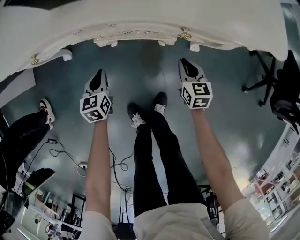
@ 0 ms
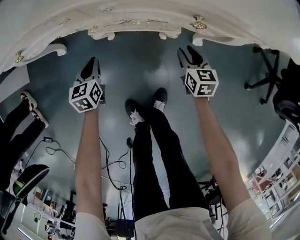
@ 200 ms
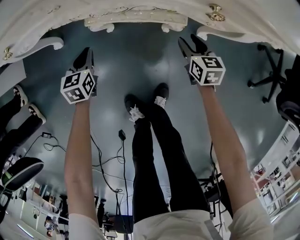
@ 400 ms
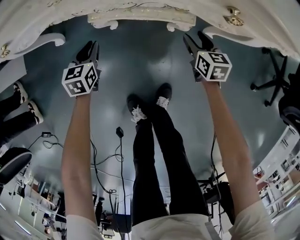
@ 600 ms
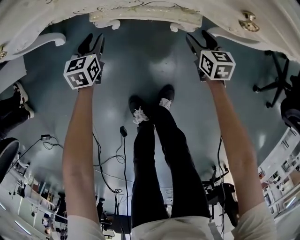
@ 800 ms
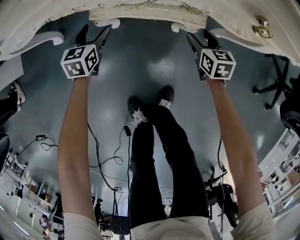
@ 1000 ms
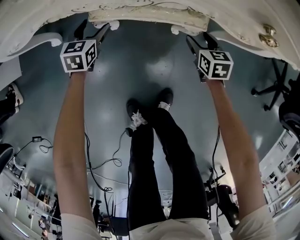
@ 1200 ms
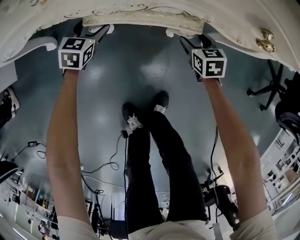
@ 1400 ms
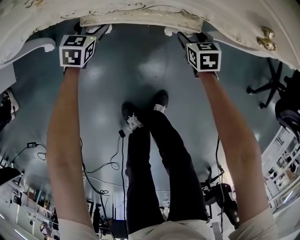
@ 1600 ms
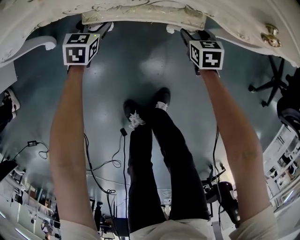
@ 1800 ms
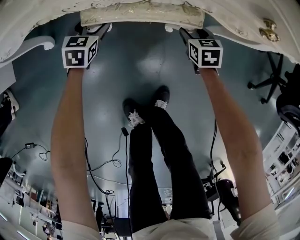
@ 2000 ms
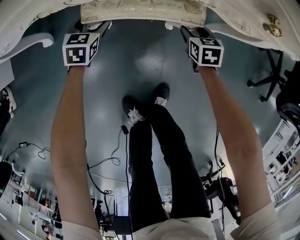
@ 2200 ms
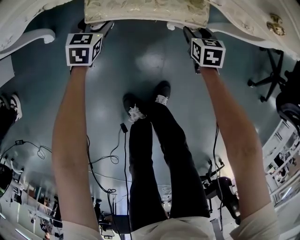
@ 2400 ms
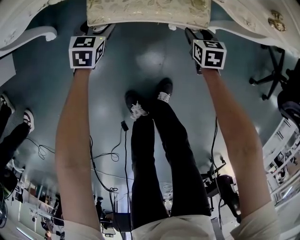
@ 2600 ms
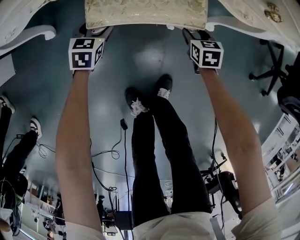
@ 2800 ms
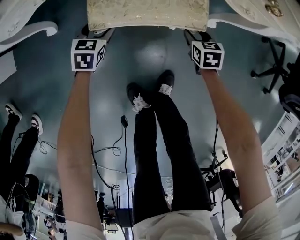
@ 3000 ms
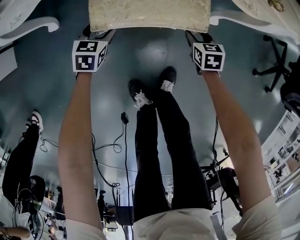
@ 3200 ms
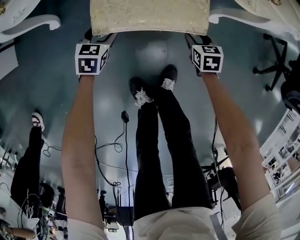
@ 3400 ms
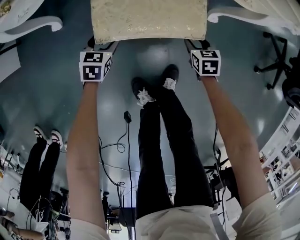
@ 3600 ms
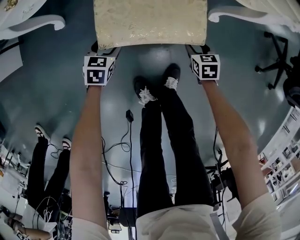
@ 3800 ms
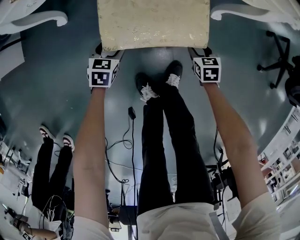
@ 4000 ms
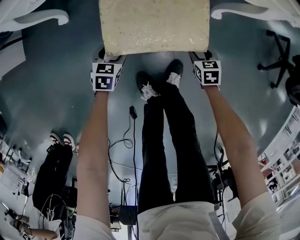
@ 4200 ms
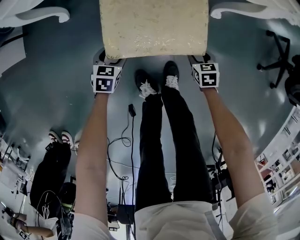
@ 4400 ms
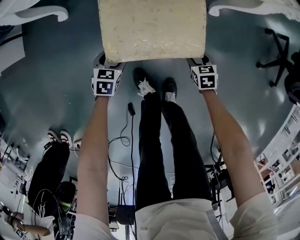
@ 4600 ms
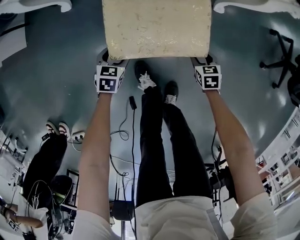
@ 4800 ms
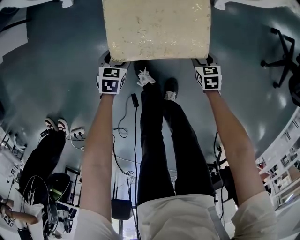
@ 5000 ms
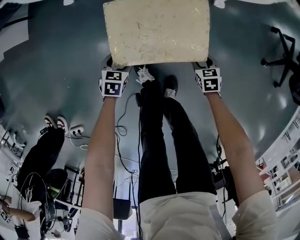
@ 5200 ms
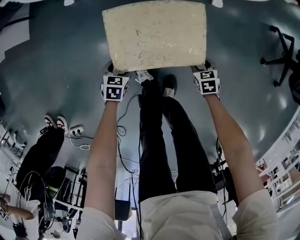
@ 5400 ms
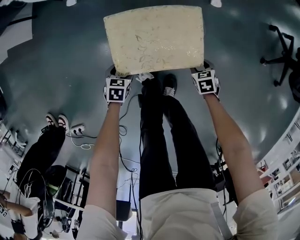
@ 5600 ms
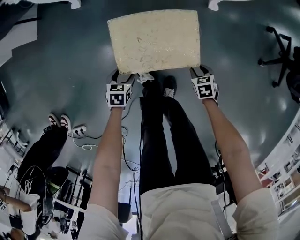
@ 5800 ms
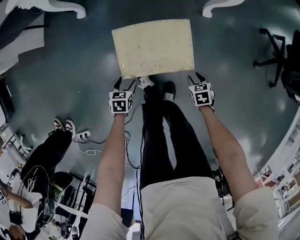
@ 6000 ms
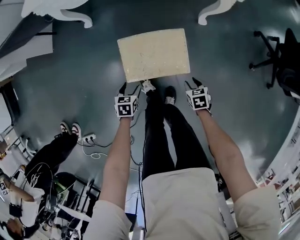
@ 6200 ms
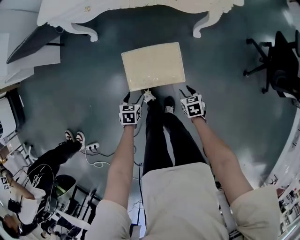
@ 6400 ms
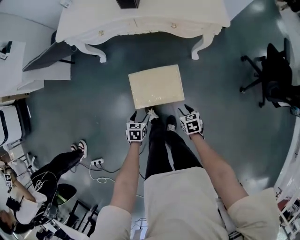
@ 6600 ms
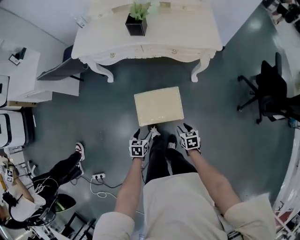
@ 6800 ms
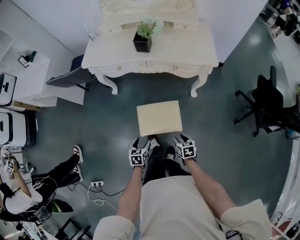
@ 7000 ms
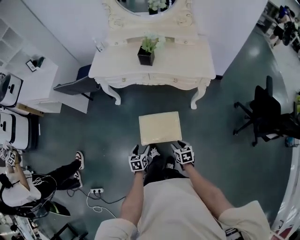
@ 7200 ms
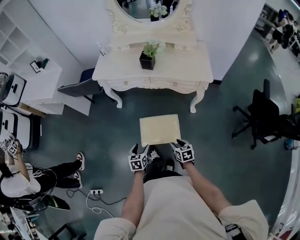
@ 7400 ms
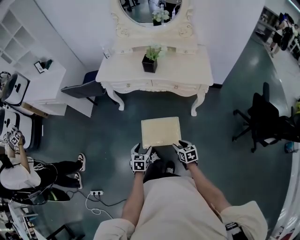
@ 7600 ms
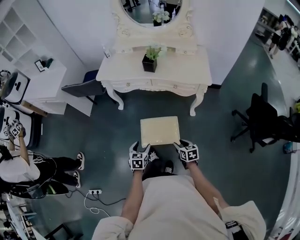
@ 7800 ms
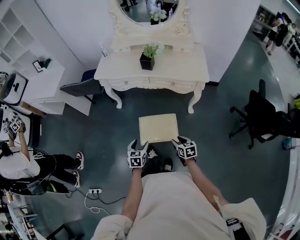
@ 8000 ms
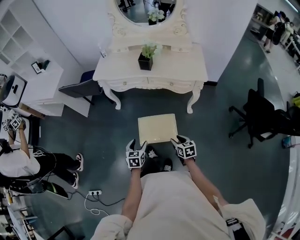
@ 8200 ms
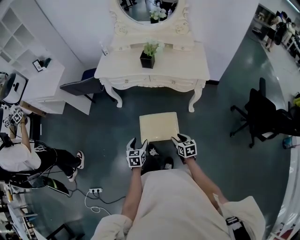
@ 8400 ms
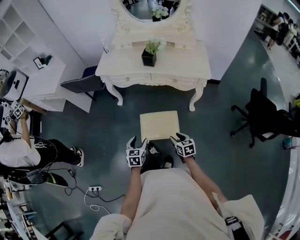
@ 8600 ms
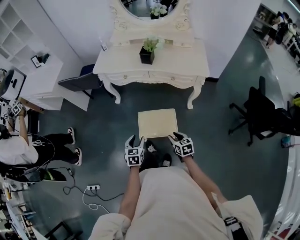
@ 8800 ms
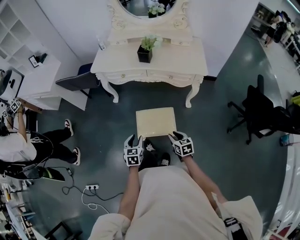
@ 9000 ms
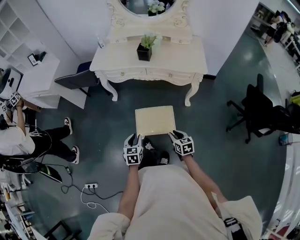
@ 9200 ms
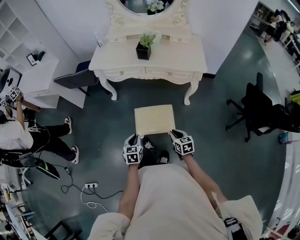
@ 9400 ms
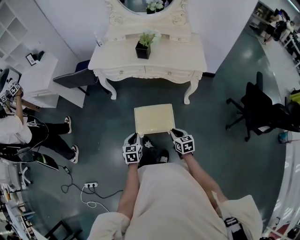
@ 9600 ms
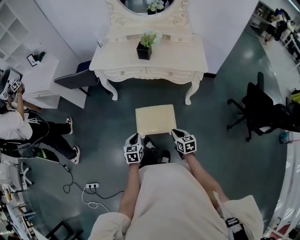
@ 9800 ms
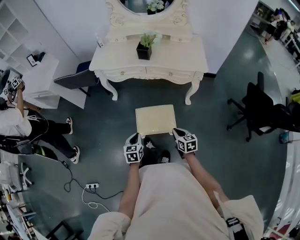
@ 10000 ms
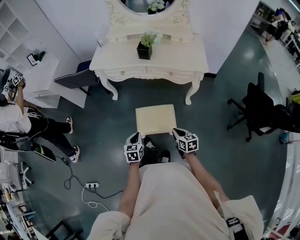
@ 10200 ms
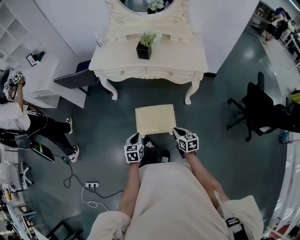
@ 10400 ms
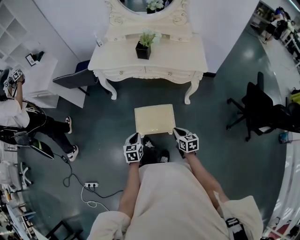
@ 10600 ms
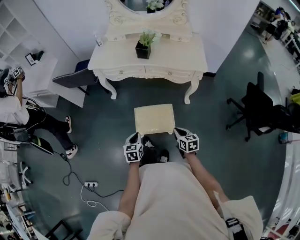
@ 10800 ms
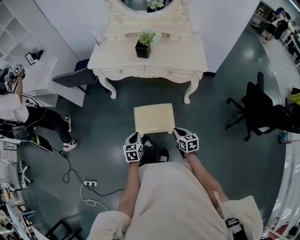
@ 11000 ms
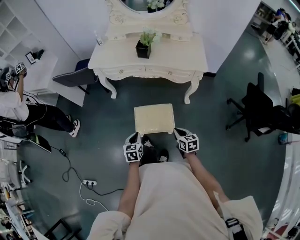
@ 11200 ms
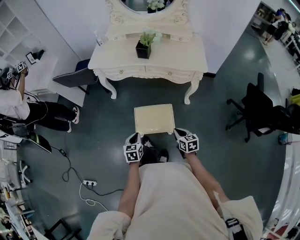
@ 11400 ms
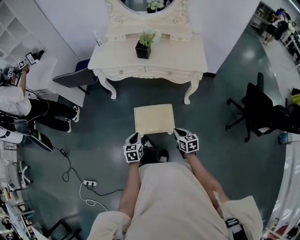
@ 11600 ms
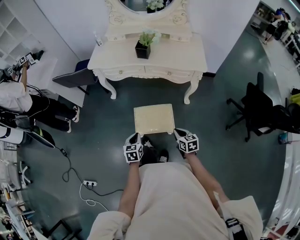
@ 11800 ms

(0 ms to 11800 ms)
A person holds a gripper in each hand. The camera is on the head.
0 ms - 1400 ms: The right gripper heads downward and forward, covering roughly 15 cm, and opens; the left gripper heads forward and downward, covering some 20 cm, rotates approximately 30 degrees, and opens its fingers.
1400 ms - 3000 ms: The grippers both shift backward by approximately 10 cm.
3000 ms - 4400 ms: The grippers both shift backward by approximately 20 cm.
4400 ms - 6000 ms: Both grippers move backward and upward, roughly 25 cm.
6000 ms - 7400 ms: The two grippers go some 40 cm upward. The left gripper swivels approximately 30 degrees. The right gripper turns by approximately 20 degrees.
7400 ms - 8800 ms: The left gripper moves upward, roughly 5 cm.
8800 ms - 10400 ms: The left gripper closes its fingers. Meanwhile the right gripper closes up.
10400 ms - 11800 ms: The grippers stay close to where they were, moving slightly.

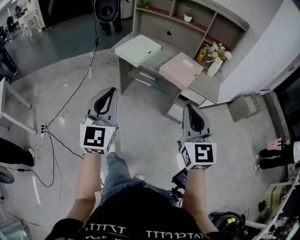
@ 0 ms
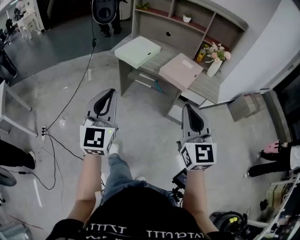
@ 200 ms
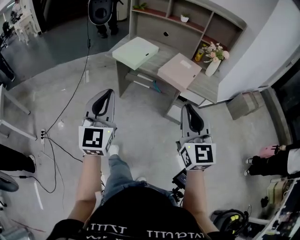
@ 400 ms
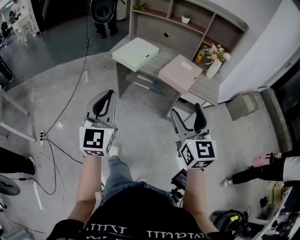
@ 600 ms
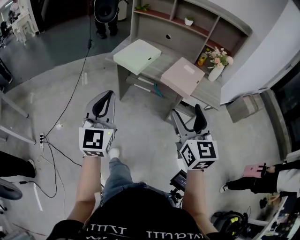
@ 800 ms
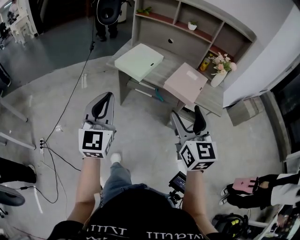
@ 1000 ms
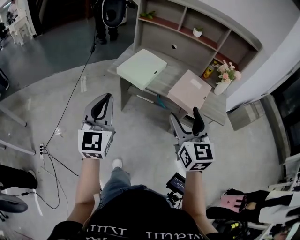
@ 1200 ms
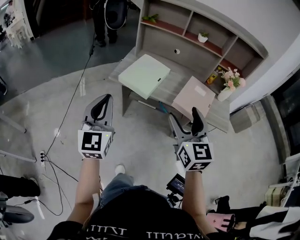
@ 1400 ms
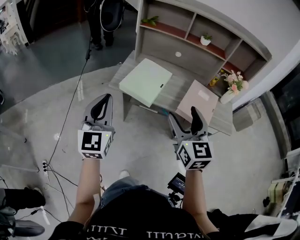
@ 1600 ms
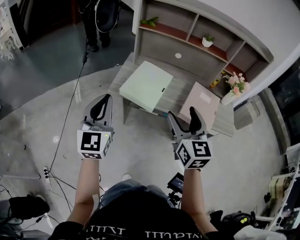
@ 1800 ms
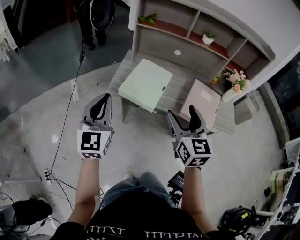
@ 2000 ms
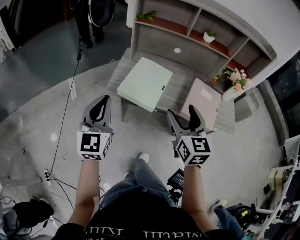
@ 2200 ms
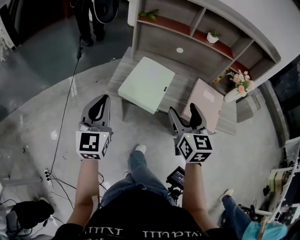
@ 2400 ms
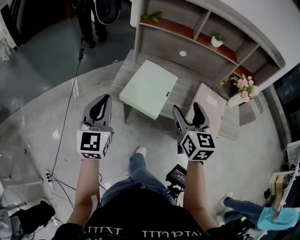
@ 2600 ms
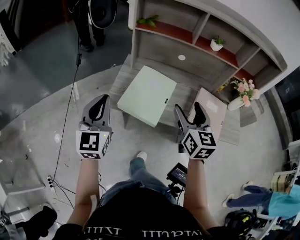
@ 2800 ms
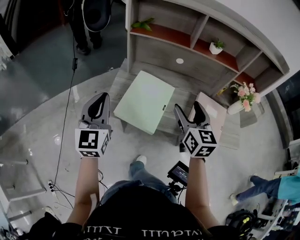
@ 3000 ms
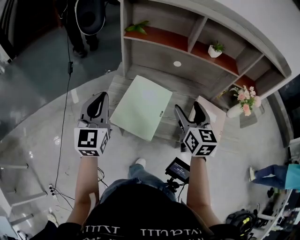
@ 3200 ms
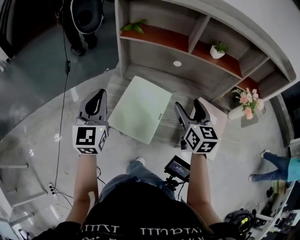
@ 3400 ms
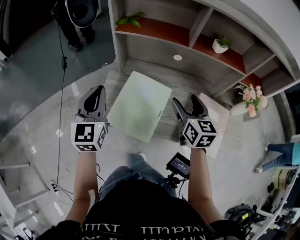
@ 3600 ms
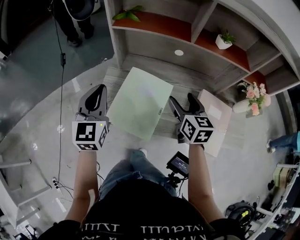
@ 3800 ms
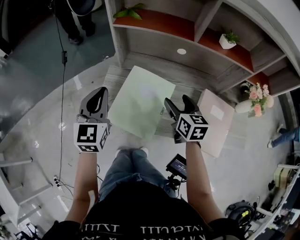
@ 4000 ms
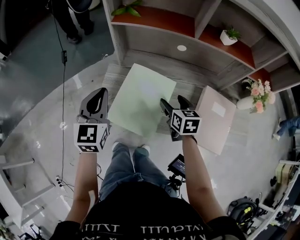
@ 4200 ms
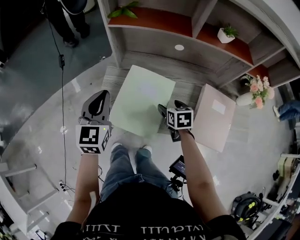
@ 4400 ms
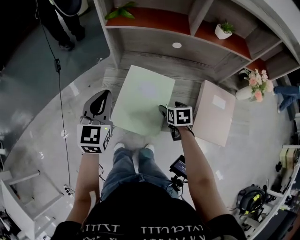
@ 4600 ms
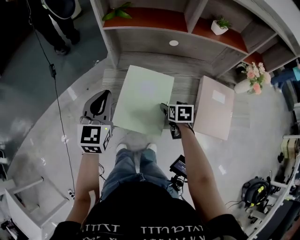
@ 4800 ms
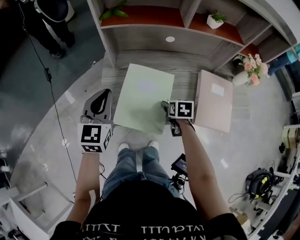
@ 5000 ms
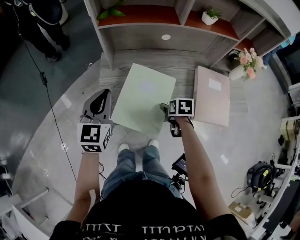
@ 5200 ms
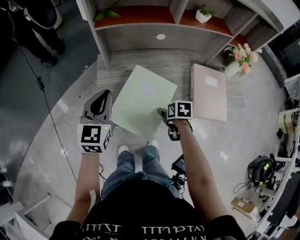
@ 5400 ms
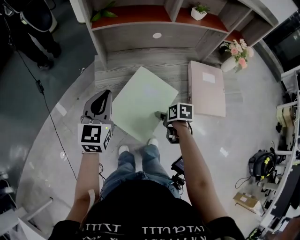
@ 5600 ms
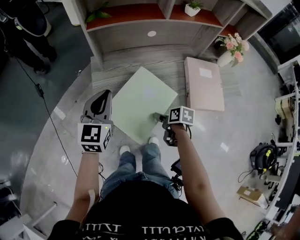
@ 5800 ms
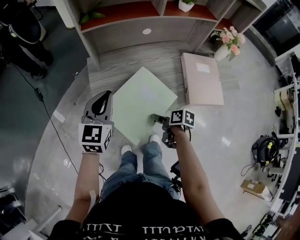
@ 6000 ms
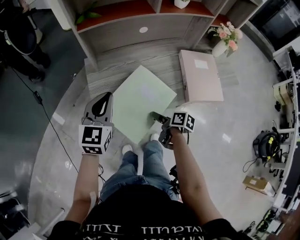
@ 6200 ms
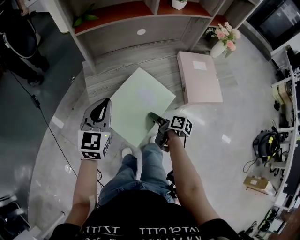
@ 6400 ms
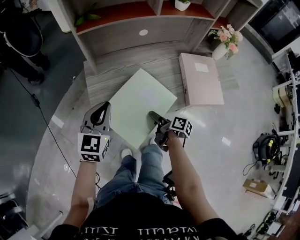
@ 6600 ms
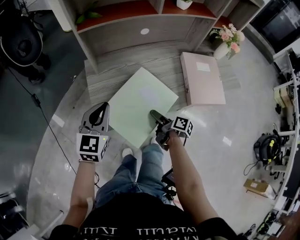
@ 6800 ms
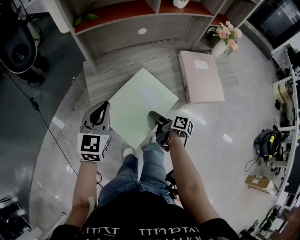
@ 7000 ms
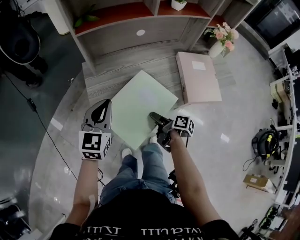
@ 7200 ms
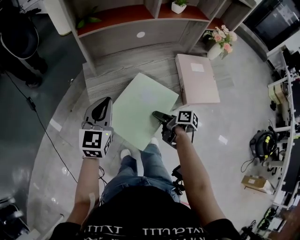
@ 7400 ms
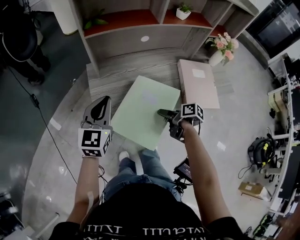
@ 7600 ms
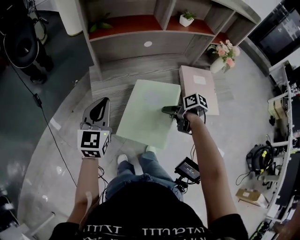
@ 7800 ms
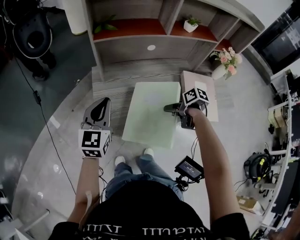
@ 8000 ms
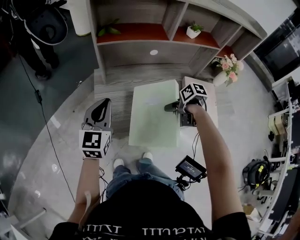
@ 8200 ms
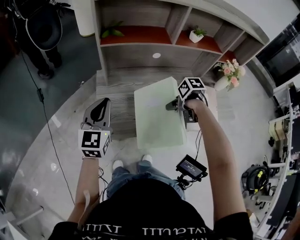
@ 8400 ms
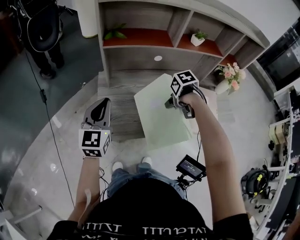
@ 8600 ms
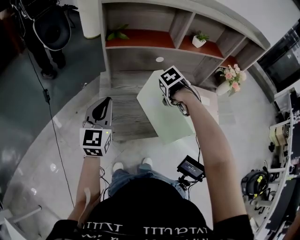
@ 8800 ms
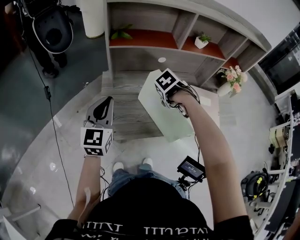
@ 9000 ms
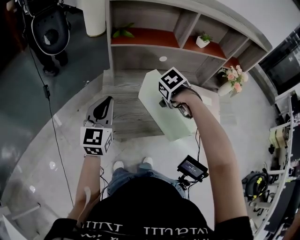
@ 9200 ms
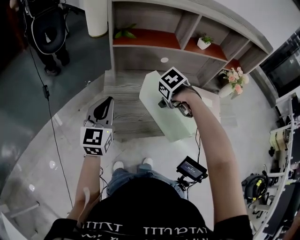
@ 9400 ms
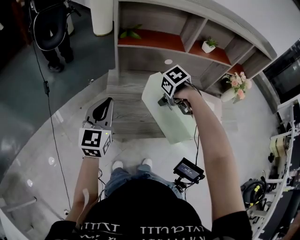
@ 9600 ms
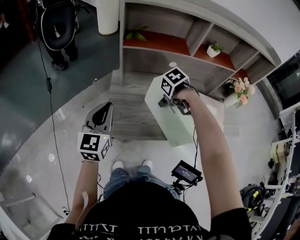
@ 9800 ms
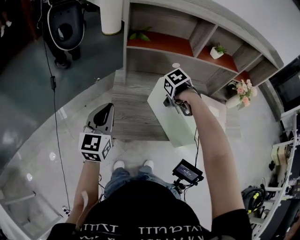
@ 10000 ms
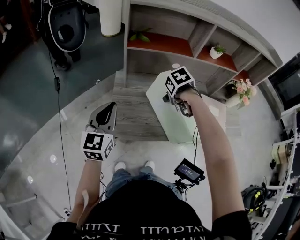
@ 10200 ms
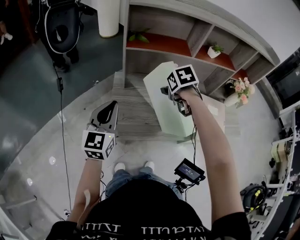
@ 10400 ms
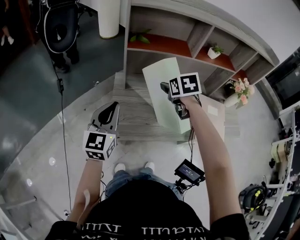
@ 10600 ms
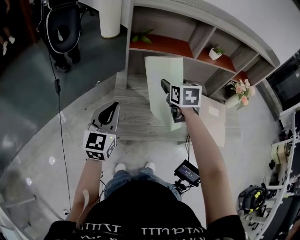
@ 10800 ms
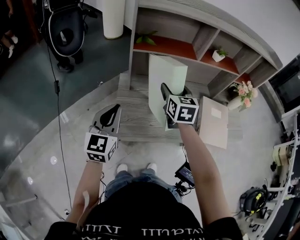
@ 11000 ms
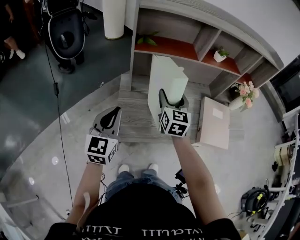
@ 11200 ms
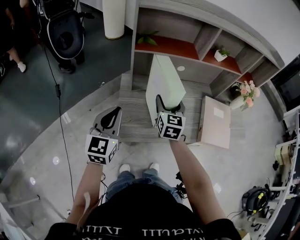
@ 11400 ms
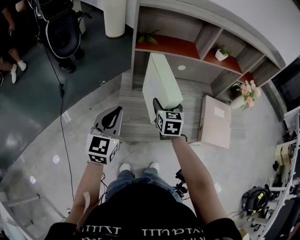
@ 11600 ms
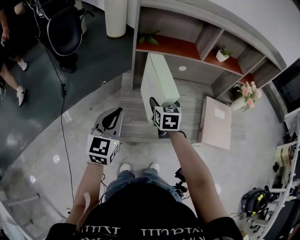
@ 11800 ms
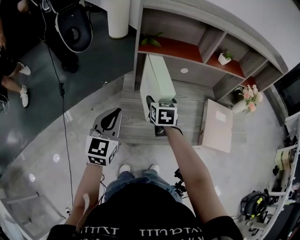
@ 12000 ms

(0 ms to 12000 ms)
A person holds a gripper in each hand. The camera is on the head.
0 ms - 1600 ms: The grippers both shift forward and to the left by about 35 cm. The right gripper opens.
1600 ms - 3000 ms: Both grippers move forward, approximately 25 cm.
3000 ms - 4400 ms: The left gripper moves forward and downward, about 15 cm; the right gripper shifts some 25 cm downward and forward, and tilts its fingers about 40 degrees downward.
4400 ms - 6000 ms: The left gripper rotates approximately 30 degrees. The right gripper shifts about 15 cm backward, and rolls clockwise, seen from behind, by approximately 60 degrees.
6000 ms - 7600 ms: The right gripper shifts by some 5 cm.
7600 ms - 9000 ms: The right gripper moves approximately 20 cm, and tilts its fingers some 40 degrees downward; the left gripper moves roughly 5 cm.
9000 ms - 10400 ms: The right gripper changes place by about 10 cm, and swivels about 30 degrees.
10400 ms - 12000 ms: The right gripper goes approximately 10 cm to the left, and tips its fingers upward by some 30 degrees.
